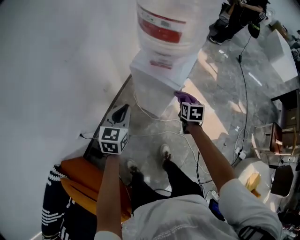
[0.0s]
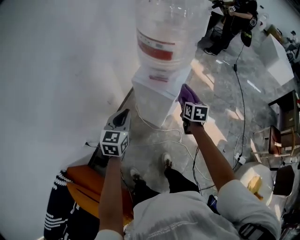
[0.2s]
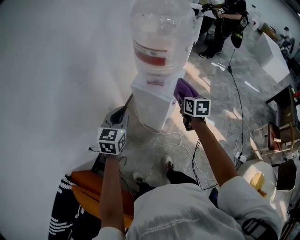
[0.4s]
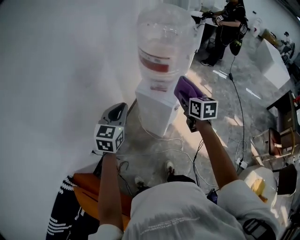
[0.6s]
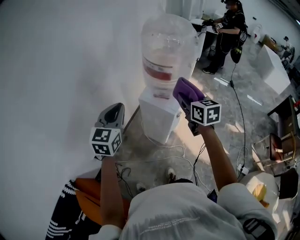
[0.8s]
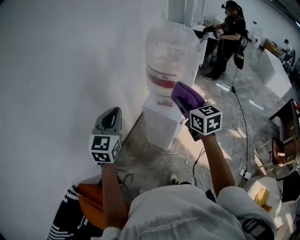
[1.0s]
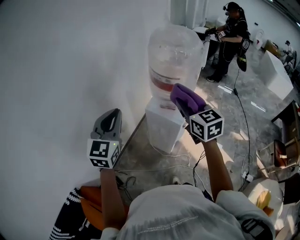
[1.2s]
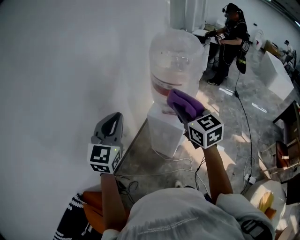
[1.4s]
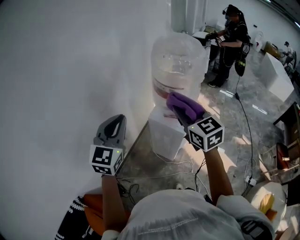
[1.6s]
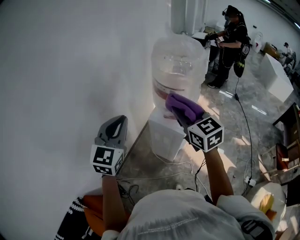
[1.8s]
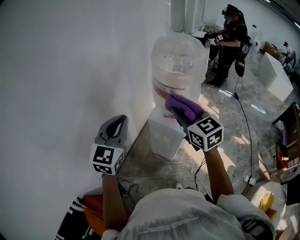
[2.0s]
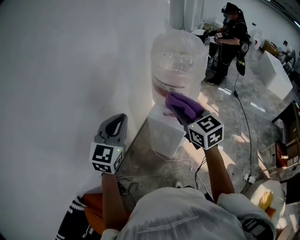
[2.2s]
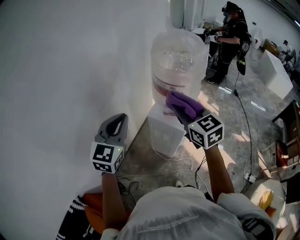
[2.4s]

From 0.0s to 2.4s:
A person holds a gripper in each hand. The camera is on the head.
From 0.0s to 1.2s: Both grippers move upward, about 35 cm. The left gripper turns by some 30 degrees, while the right gripper tilts its fingers approximately 30 degrees upward.
From 1.2s to 2.4s: There are only small adjustments of the grippers.

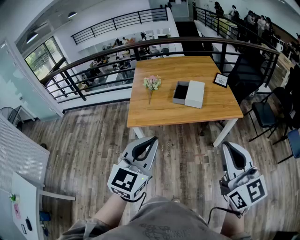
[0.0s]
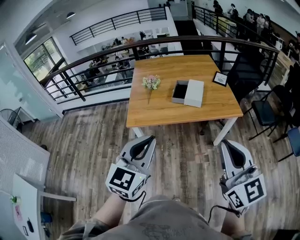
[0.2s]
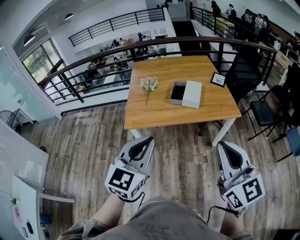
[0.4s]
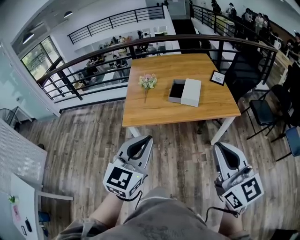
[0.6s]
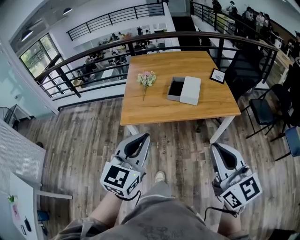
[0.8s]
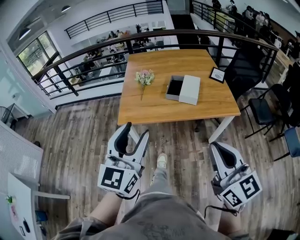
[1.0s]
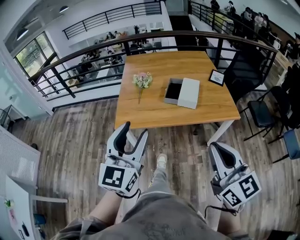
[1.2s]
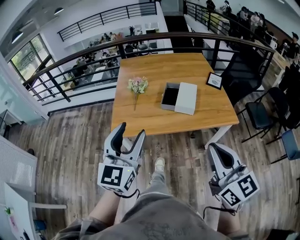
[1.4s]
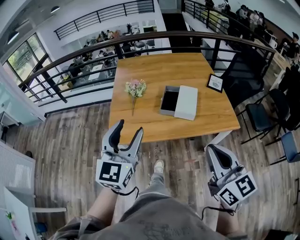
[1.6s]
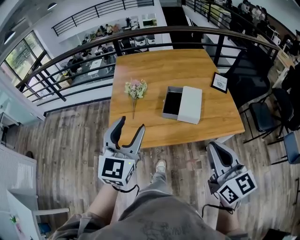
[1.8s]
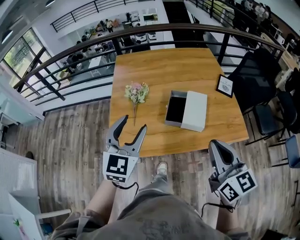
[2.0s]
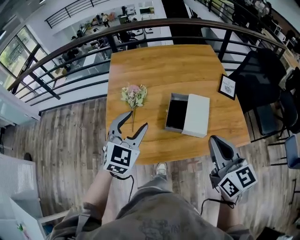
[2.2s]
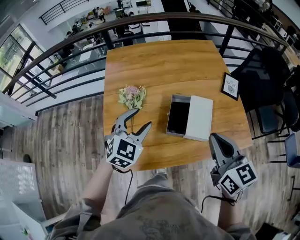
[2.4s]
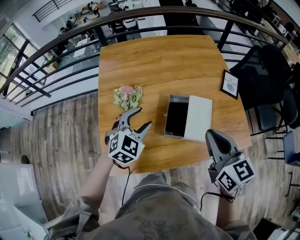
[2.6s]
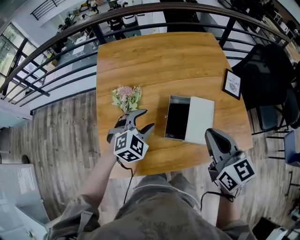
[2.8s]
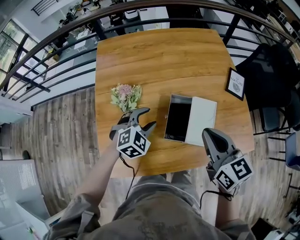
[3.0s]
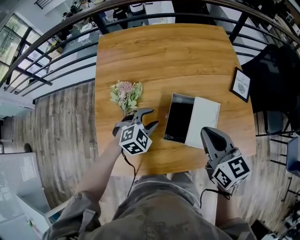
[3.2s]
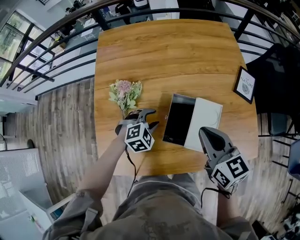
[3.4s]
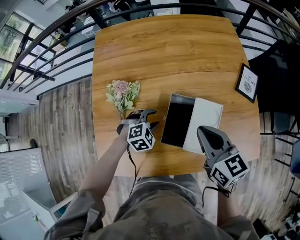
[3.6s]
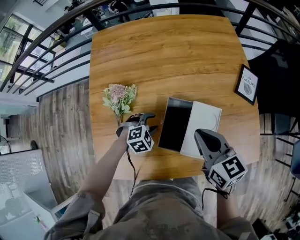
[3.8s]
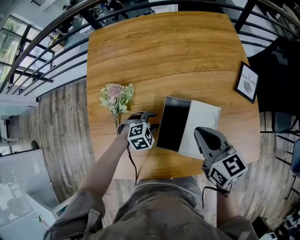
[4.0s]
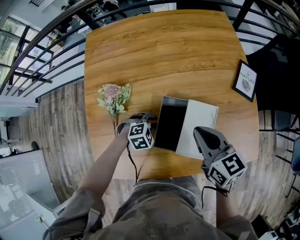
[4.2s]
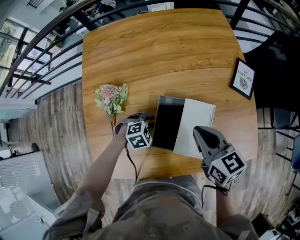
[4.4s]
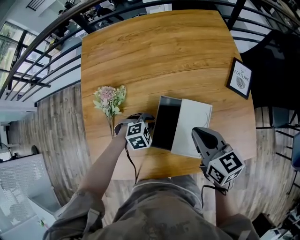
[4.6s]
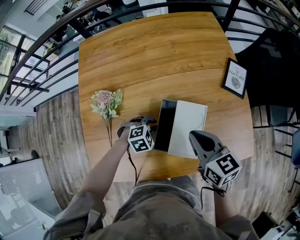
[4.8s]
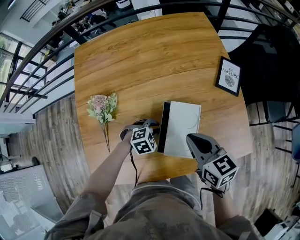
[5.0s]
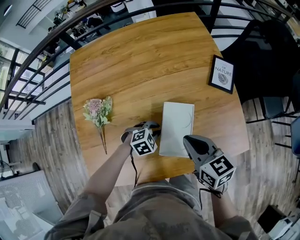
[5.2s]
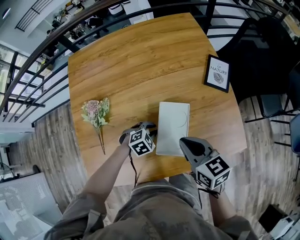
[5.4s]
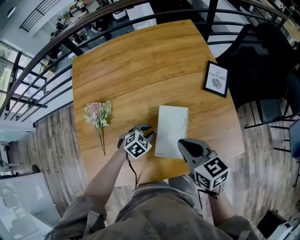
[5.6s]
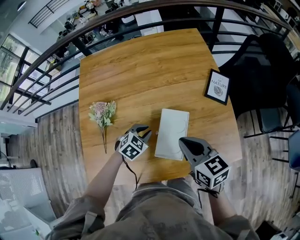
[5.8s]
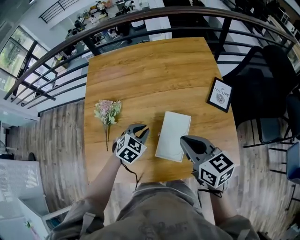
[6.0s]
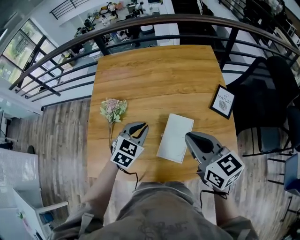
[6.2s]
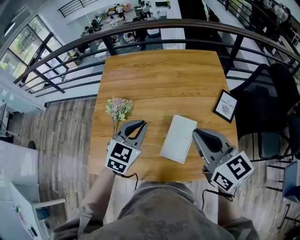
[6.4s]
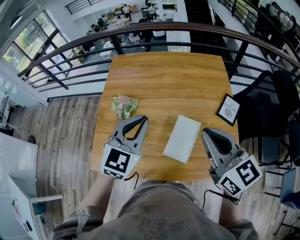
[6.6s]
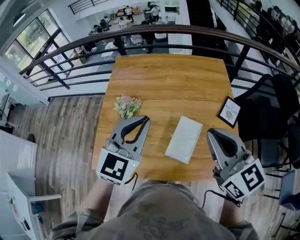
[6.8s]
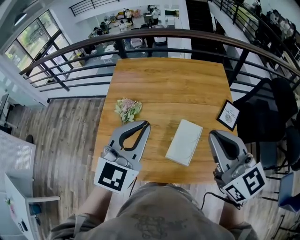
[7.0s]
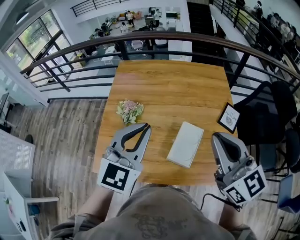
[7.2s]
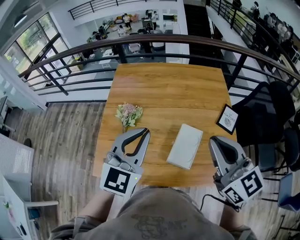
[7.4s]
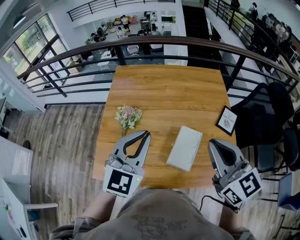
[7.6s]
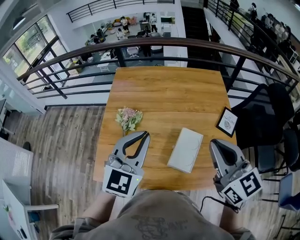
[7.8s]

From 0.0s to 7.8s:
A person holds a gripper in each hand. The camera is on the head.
From 0.0s to 1.6s: Both grippers move forward, some 20 cm. The left gripper opens its fingers.
From 1.6s to 3.2s: The left gripper is displaced forward and downward by about 50 cm, and tilts its fingers about 50 degrees downward, while the right gripper heads forward, covering roughly 40 cm, and changes its angle by about 20 degrees.
From 3.2s to 4.6s: The right gripper goes approximately 5 cm downward. The left gripper is displaced downward and to the right by roughly 15 cm, rotates roughly 20 degrees, and closes its fingers.
From 4.6s to 6.2s: The right gripper goes some 15 cm upward. Meanwhile the left gripper moves upward, some 20 cm, and tips its fingers upward by roughly 30 degrees.
From 6.2s to 7.8s: The left gripper shifts roughly 20 cm upward, and tips its fingers upward by approximately 30 degrees. The right gripper is displaced upward by some 10 cm.

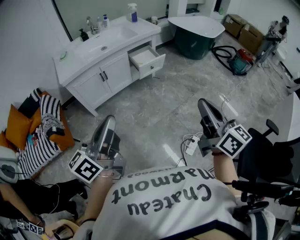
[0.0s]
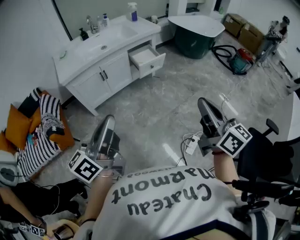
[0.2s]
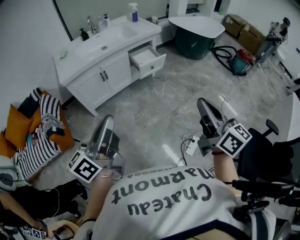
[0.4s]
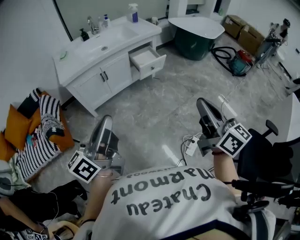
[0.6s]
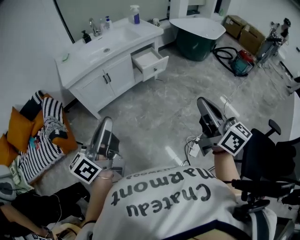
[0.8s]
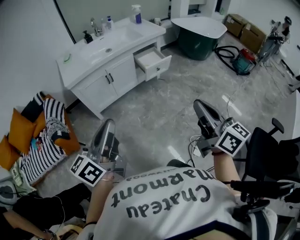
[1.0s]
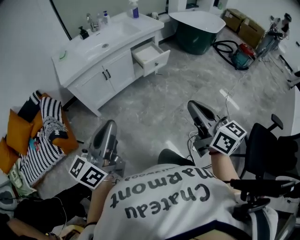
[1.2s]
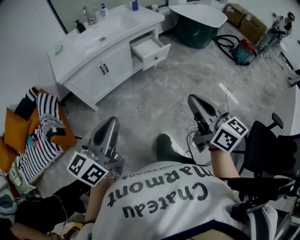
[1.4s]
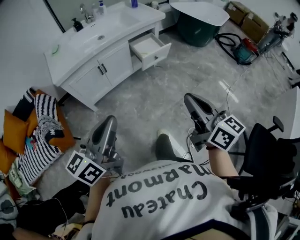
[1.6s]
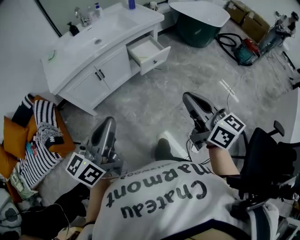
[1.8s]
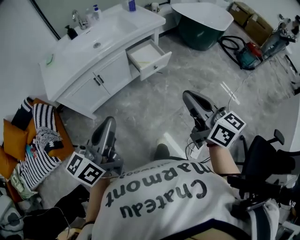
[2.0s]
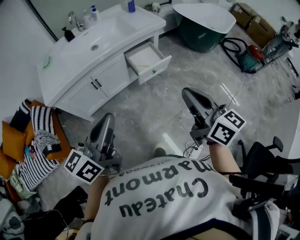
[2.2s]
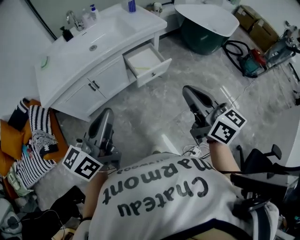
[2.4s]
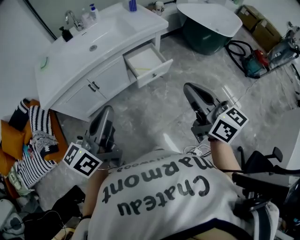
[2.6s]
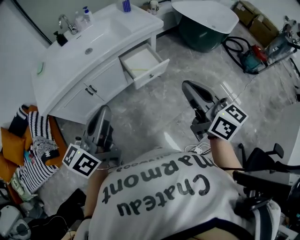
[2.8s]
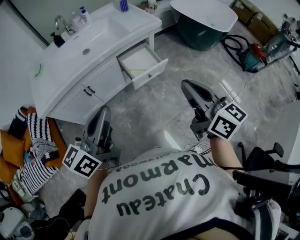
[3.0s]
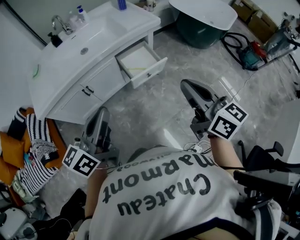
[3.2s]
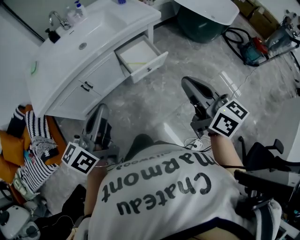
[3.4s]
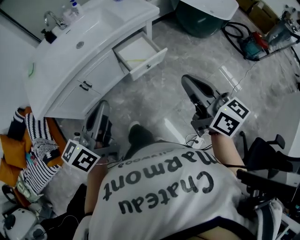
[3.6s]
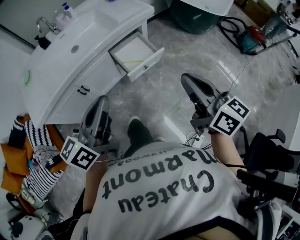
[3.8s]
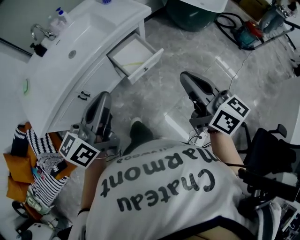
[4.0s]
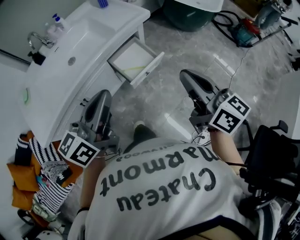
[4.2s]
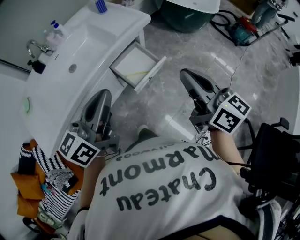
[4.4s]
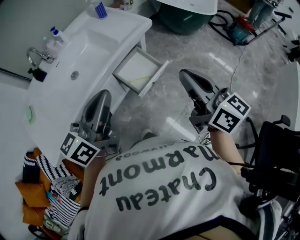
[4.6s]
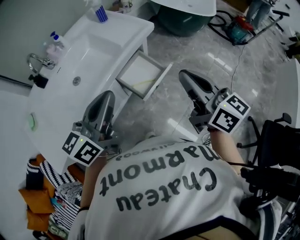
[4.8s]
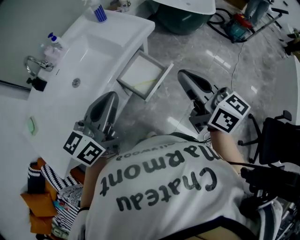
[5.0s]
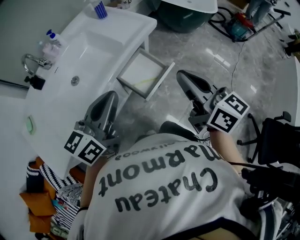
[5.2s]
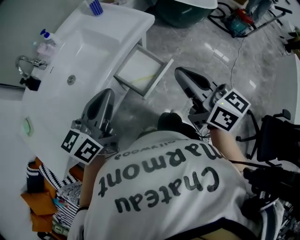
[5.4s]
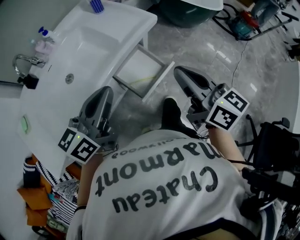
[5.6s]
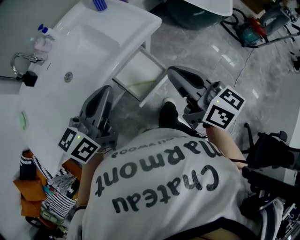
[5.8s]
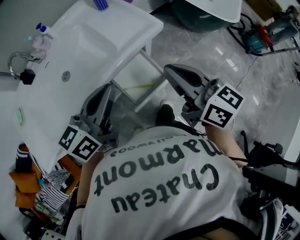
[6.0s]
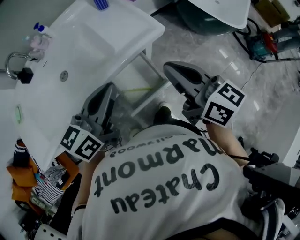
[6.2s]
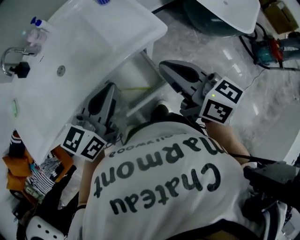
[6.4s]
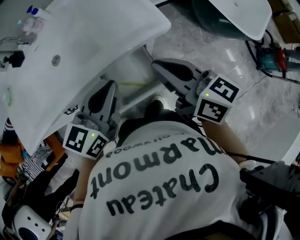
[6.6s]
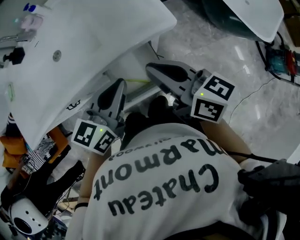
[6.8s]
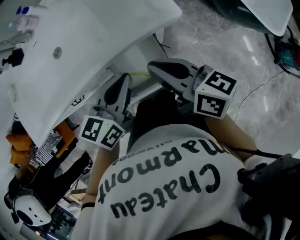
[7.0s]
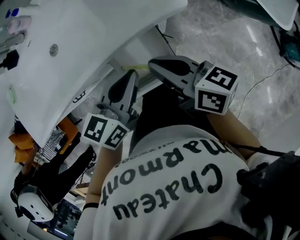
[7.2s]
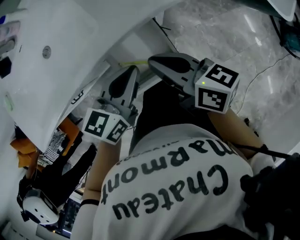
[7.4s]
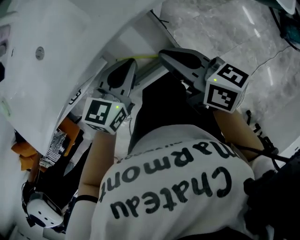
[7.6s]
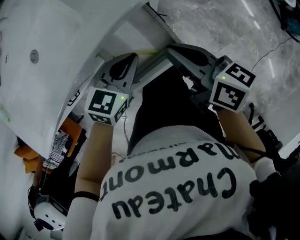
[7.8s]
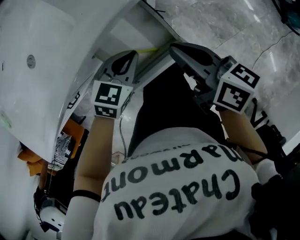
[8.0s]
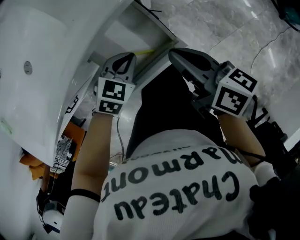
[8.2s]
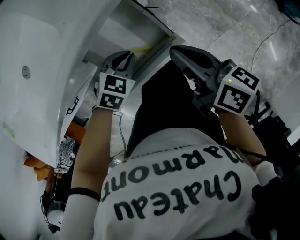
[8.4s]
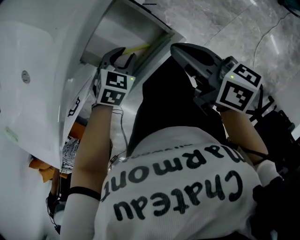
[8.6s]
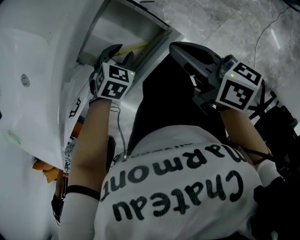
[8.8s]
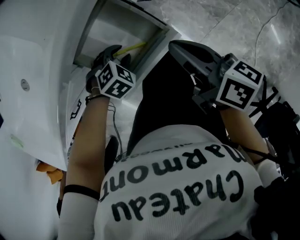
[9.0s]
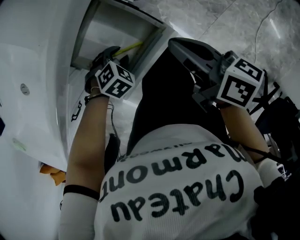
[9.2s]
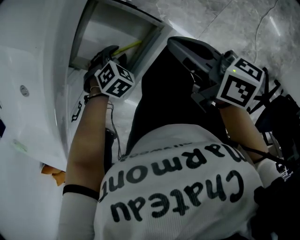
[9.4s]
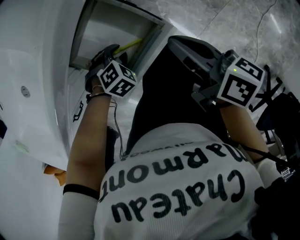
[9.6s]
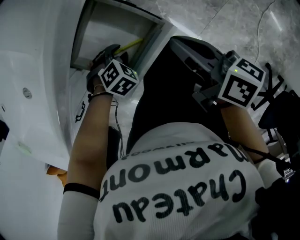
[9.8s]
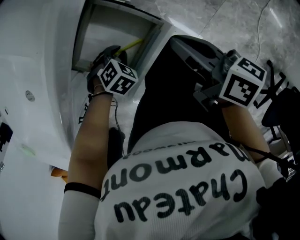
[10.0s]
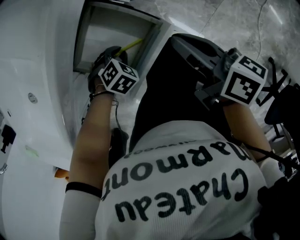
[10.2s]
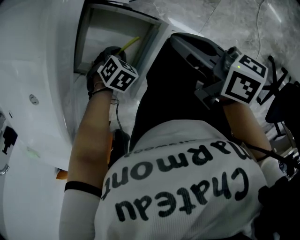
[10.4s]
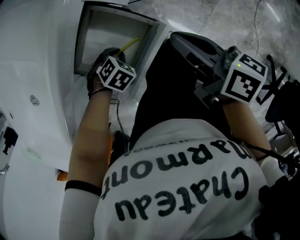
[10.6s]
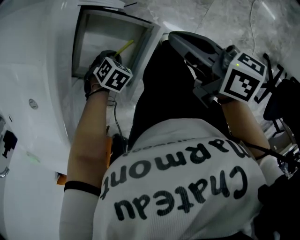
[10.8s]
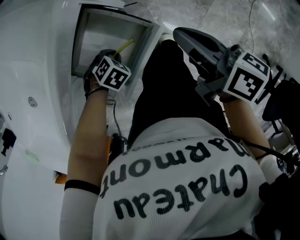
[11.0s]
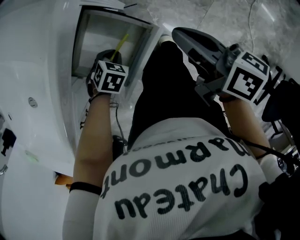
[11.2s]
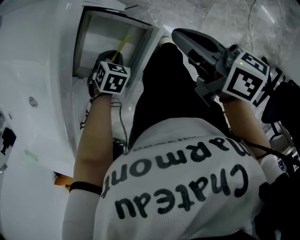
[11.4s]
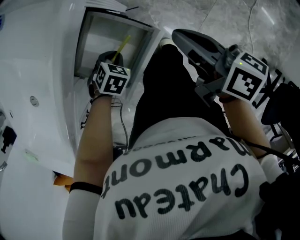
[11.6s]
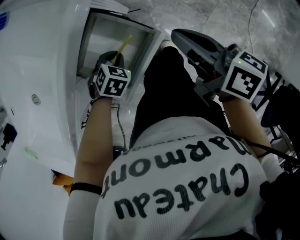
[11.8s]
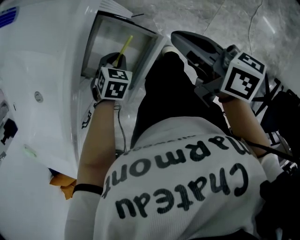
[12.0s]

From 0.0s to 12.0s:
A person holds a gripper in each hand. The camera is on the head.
From 0.0s to 1.6s: The left gripper shifts some 10 cm forward, while the right gripper is displaced to the left, forward and downward by about 15 cm.
From 1.6s to 3.0s: Both grippers move forward, some 30 cm.
From 3.0s to 4.4s: The right gripper is displaced forward by approximately 10 cm. Meanwhile the left gripper goes roughly 20 cm forward.
From 4.4s to 6.0s: Both grippers move forward, roughly 20 cm.
From 6.0s to 7.6s: Both grippers travel together downward, some 25 cm. The left gripper rotates roughly 30 degrees. The right gripper rotates about 30 degrees.
From 7.6s to 9.0s: The right gripper changes place by roughly 10 cm, and rotates roughly 20 degrees. Meanwhile the left gripper travels downward by some 20 cm, tilts its fingers some 50 degrees downward, and opens its fingers.
From 9.0s to 10.4s: The left gripper closes.
From 10.4s to 12.0s: The grippers both shift upward by roughly 5 cm. The left gripper swivels about 30 degrees.

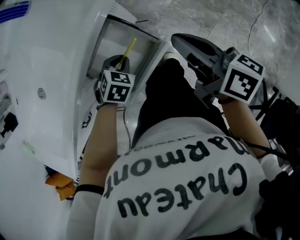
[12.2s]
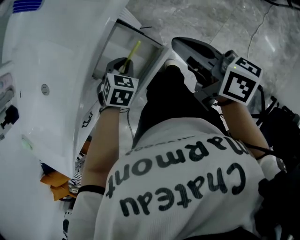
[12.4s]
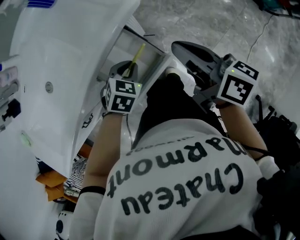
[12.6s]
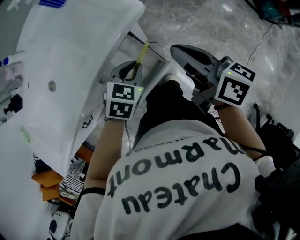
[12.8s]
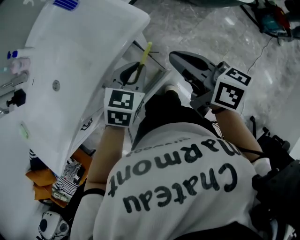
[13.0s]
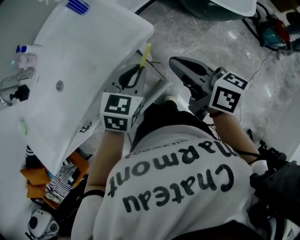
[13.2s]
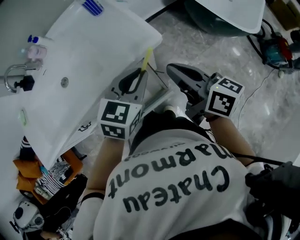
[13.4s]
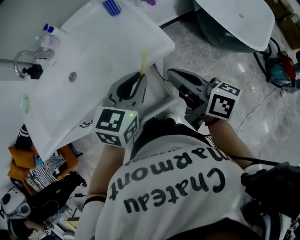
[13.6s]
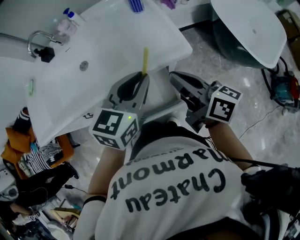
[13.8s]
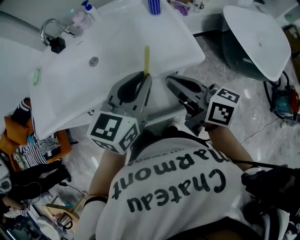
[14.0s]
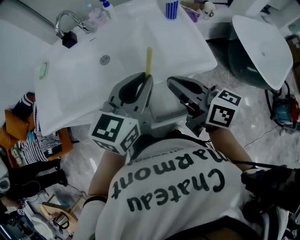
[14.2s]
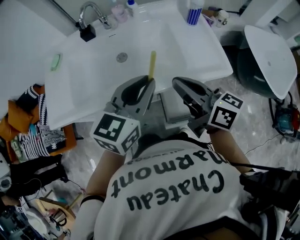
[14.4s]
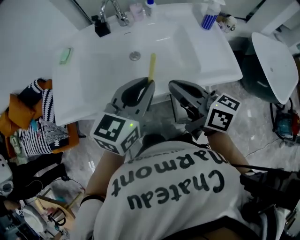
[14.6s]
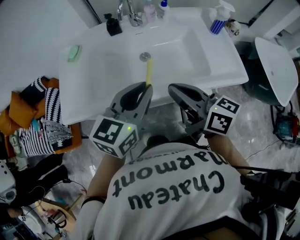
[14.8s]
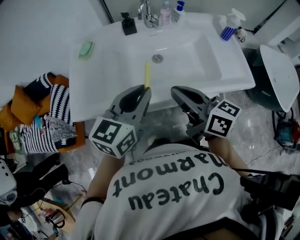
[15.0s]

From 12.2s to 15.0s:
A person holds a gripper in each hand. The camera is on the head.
From 12.2s to 13.6s: The left gripper moves upward, some 30 cm, and tilts its fingers roughly 40 degrees upward; the right gripper travels upward by some 15 cm, and turns by roughly 30 degrees.
From 13.6s to 15.0s: The two grippers travel together, to the left, approximately 40 cm. The left gripper rotates some 20 degrees. Meanwhile the right gripper turns by some 20 degrees.
